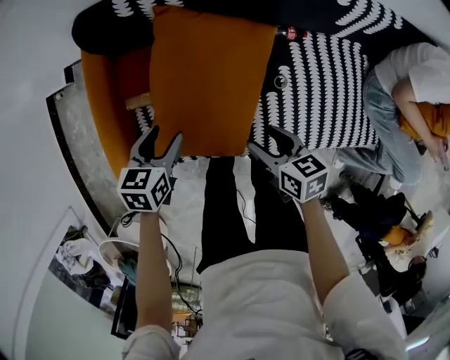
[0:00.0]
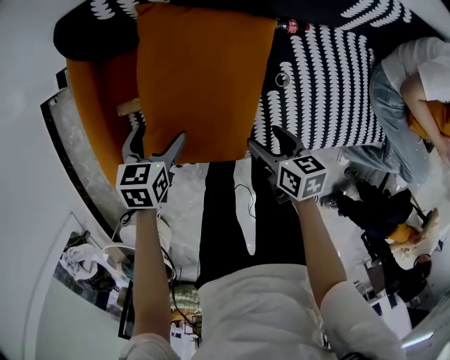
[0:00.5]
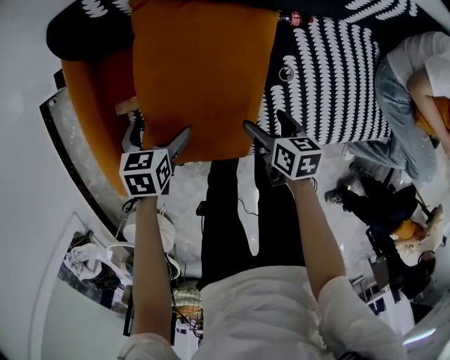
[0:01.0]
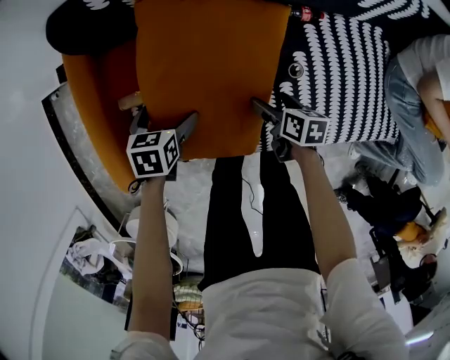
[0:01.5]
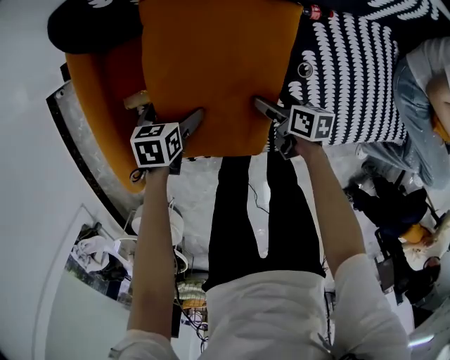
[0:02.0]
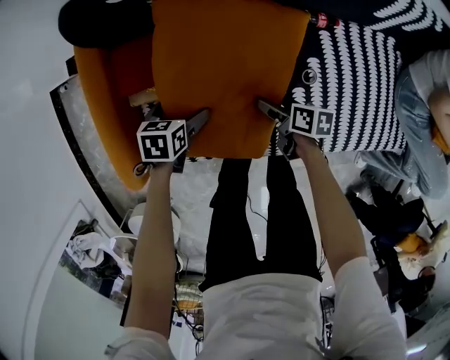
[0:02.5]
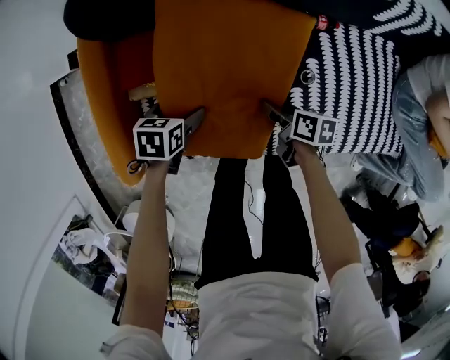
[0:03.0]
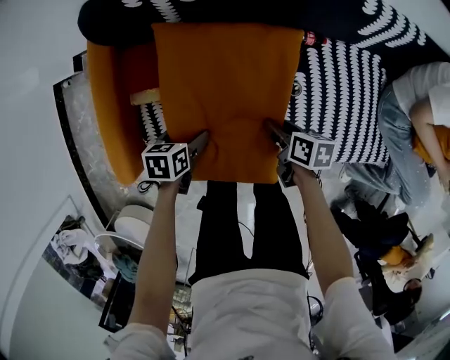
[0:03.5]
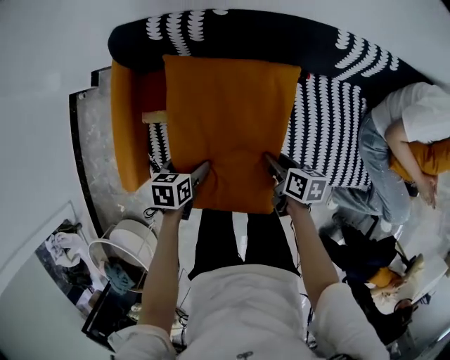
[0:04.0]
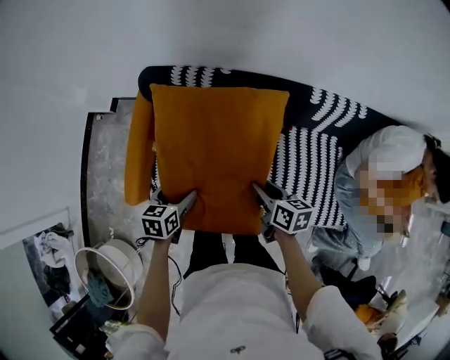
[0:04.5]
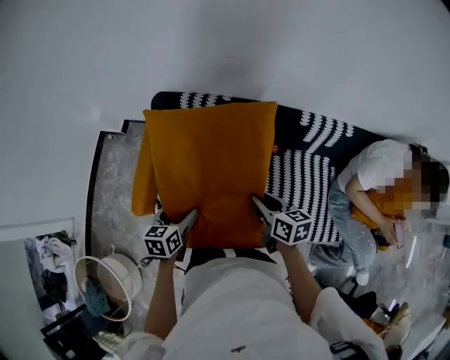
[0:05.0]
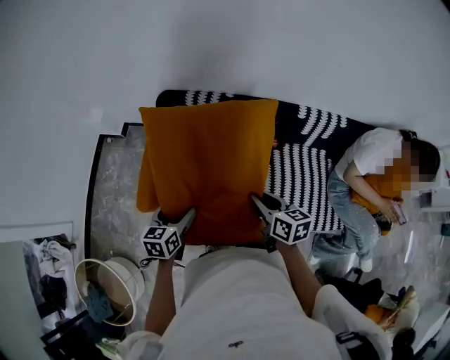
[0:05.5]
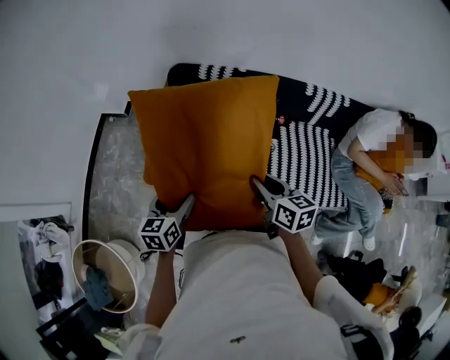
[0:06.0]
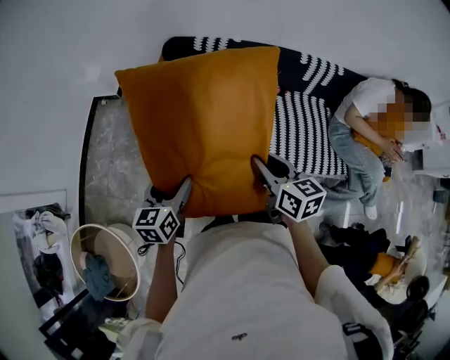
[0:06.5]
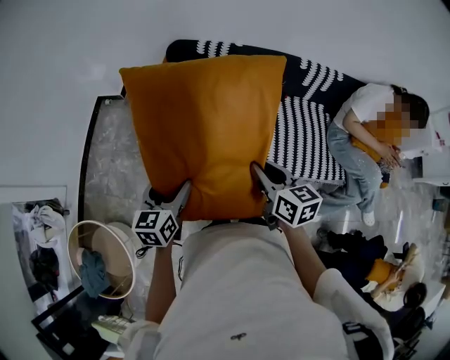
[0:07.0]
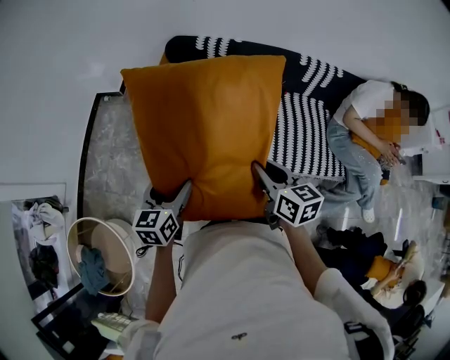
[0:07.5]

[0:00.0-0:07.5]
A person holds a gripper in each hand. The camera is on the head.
0:00.0 to 0:02.0: The grippers both shift downward by approximately 15 cm. The right gripper swivels some 30 degrees, and opens; the left gripper opens.
0:02.0 to 0:04.0: The left gripper heads upward, backward and to the right, covering some 15 cm; the right gripper goes roughly 20 cm upward and to the right, and closes.
0:04.0 to 0:05.5: The two grippers go some 25 cm upward. The right gripper rotates approximately 30 degrees; the left gripper swivels some 30 degrees.
0:05.5 to 0:07.5: Both grippers travel together backward and to the left, roughly 25 cm.

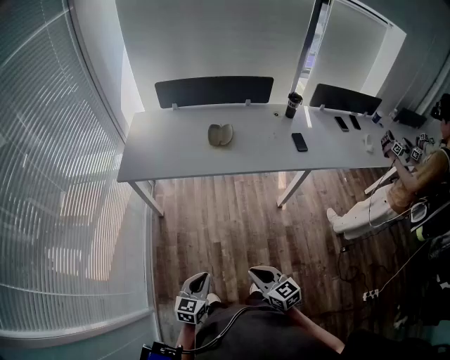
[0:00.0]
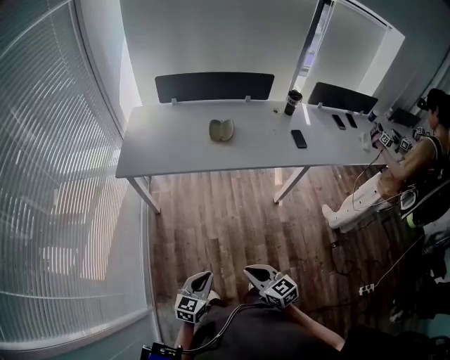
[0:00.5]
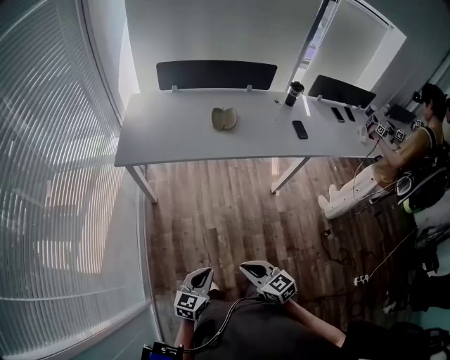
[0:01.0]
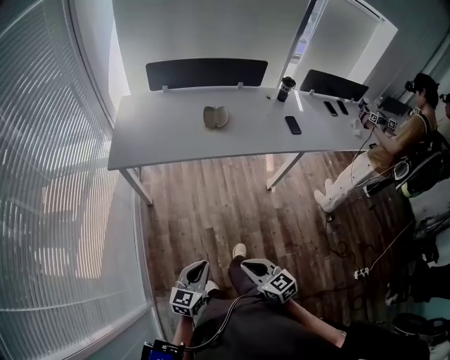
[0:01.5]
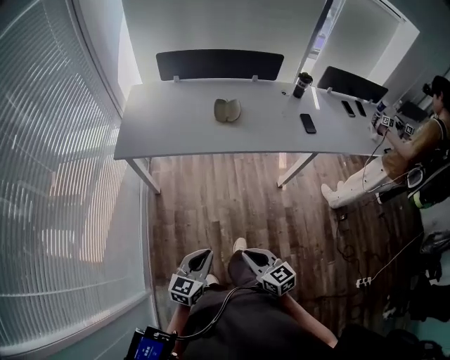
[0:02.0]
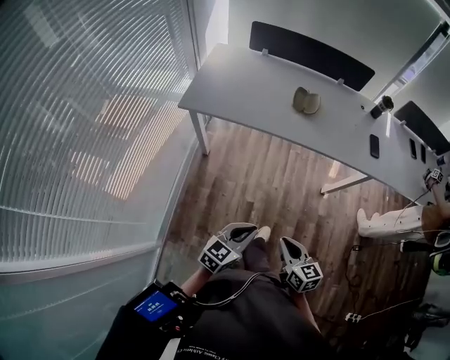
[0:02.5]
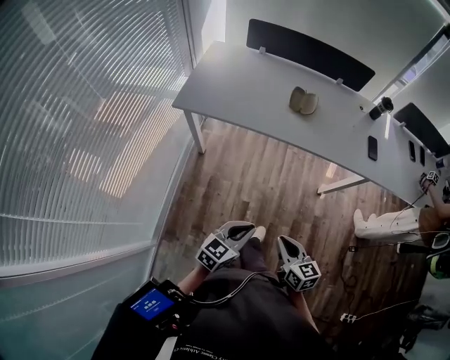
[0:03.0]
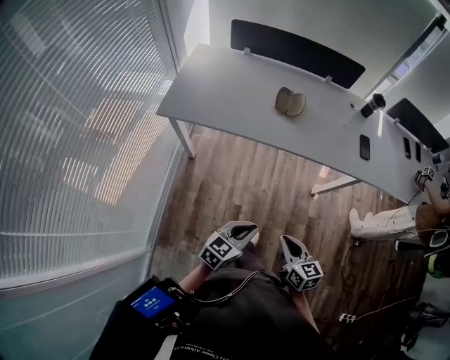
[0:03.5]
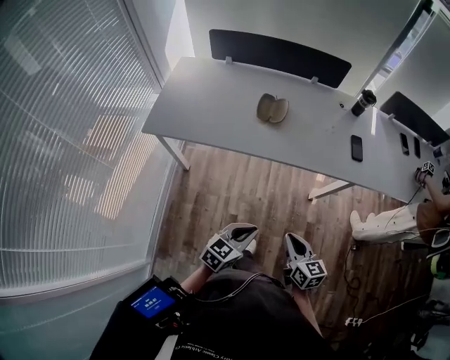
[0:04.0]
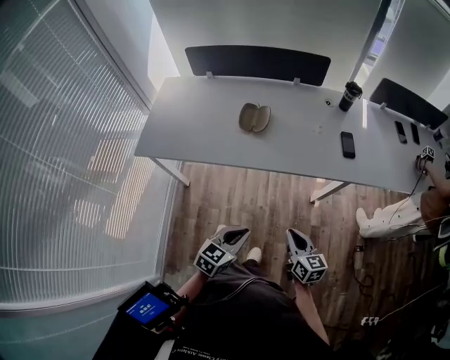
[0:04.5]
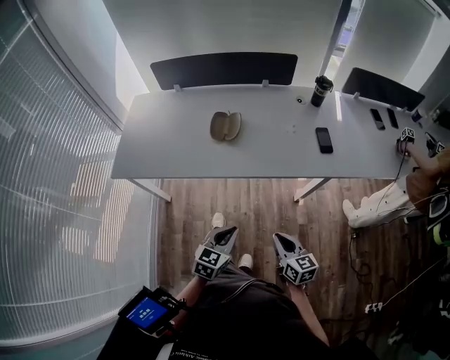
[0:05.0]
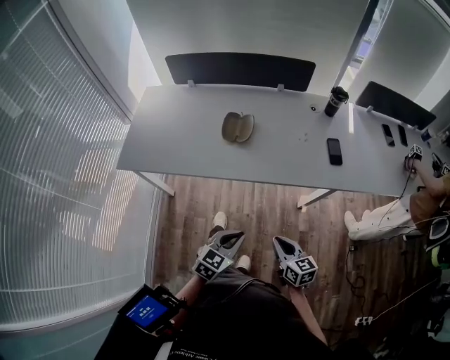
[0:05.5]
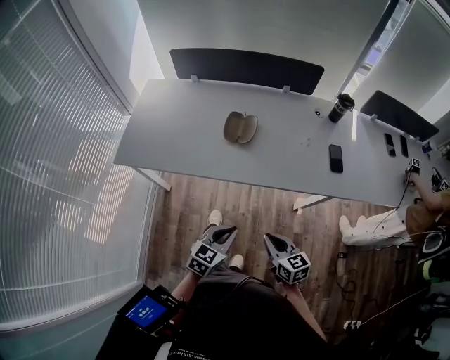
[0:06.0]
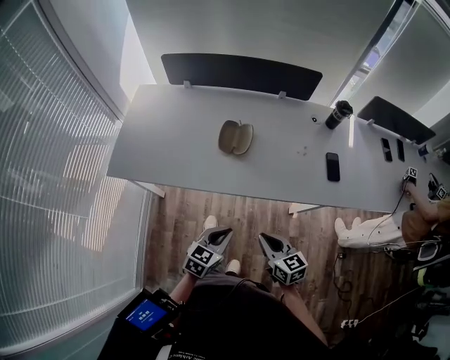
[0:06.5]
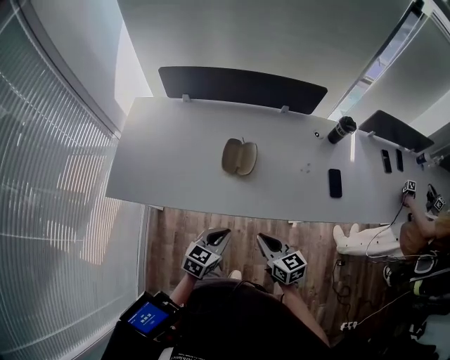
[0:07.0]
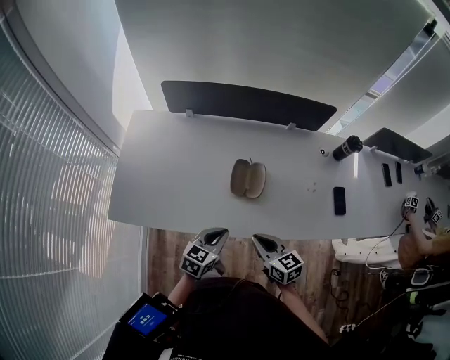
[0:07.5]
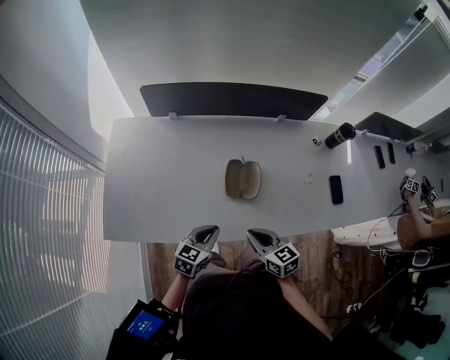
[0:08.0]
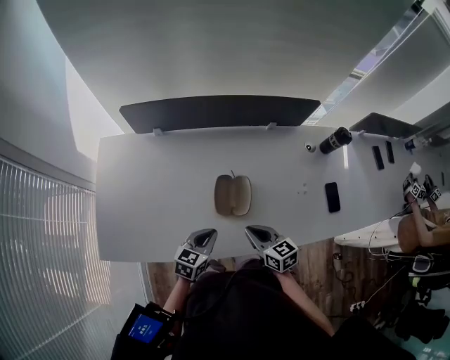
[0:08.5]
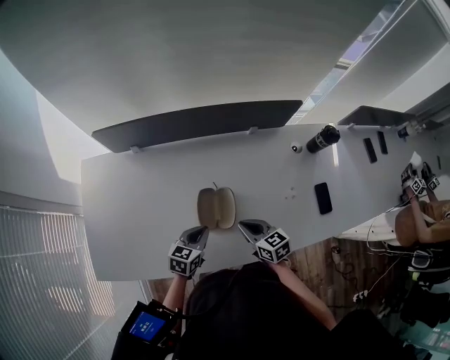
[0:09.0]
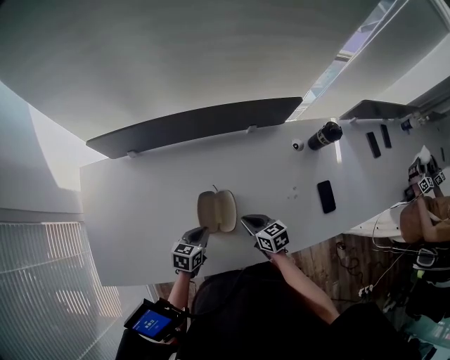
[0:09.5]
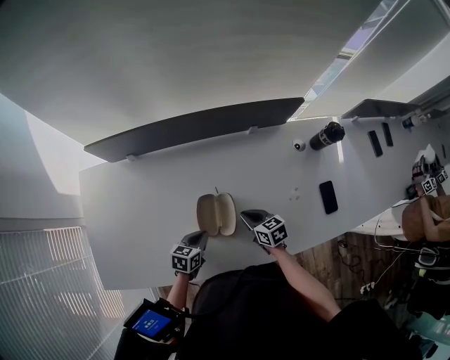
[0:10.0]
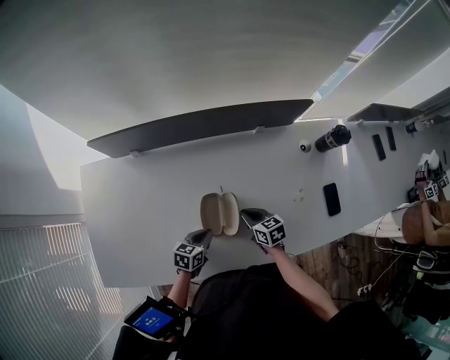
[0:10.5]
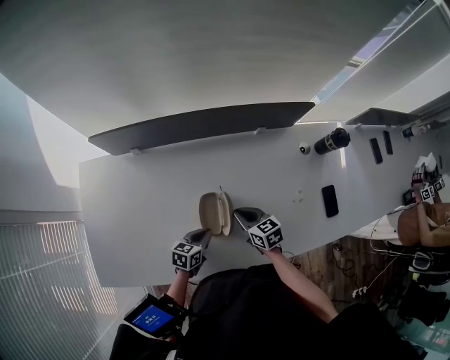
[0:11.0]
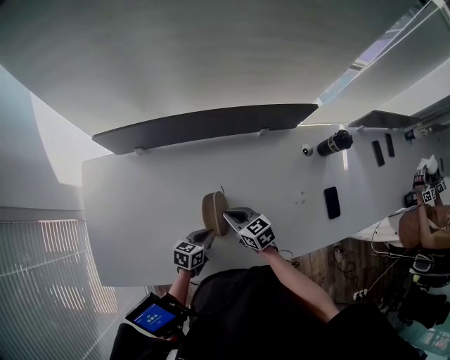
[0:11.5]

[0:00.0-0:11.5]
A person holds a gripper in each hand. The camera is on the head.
0:00.0 to 0:02.0: The right gripper goes roughly 5 cm to the left. The left gripper changes place by some 5 cm.
0:02.0 to 0:04.0: Both grippers move forward and to the right, roughly 20 cm.
0:04.0 to 0:06.0: The two grippers go about 10 cm forward.
0:06.0 to 0:07.5: The two grippers go roughly 25 cm forward and to the left.
0:07.5 to 0:09.5: Both grippers move forward and downward, some 25 cm.
0:09.5 to 0:11.5: The right gripper travels to the left by some 10 cm.

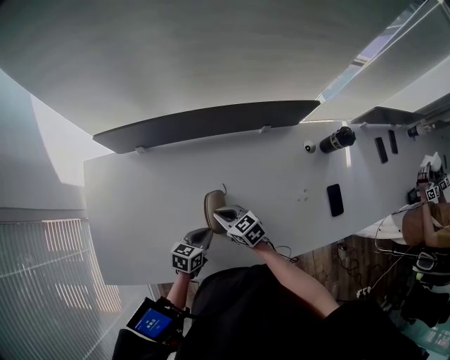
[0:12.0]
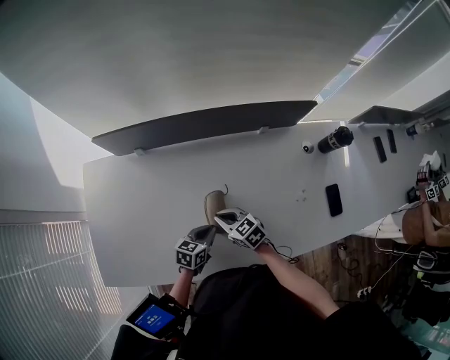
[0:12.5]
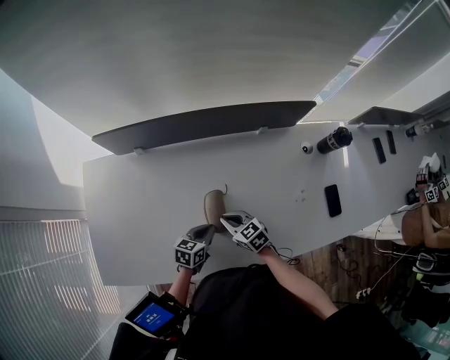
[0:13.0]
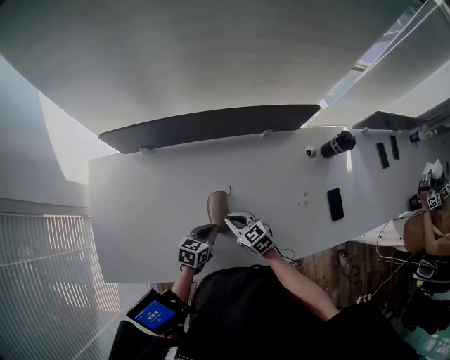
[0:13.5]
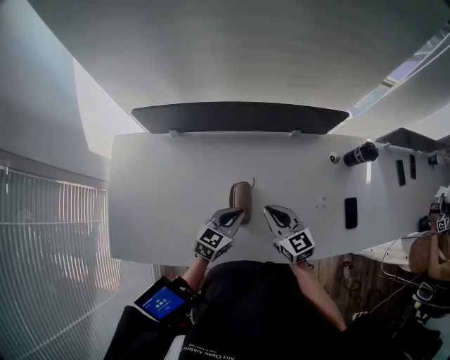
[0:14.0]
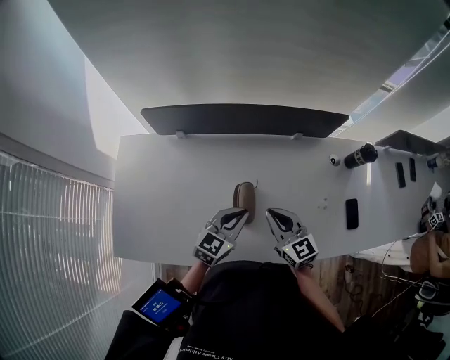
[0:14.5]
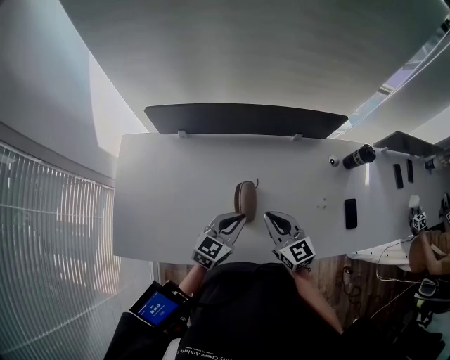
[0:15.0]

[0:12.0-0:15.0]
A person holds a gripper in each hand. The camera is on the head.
0:12.0 to 0:13.5: There are only small adjustments of the grippers.
0:13.5 to 0:15.0: Both grippers move upward, approximately 15 cm. The left gripper swivels approximately 30 degrees. The right gripper changes its angle by approximately 20 degrees.

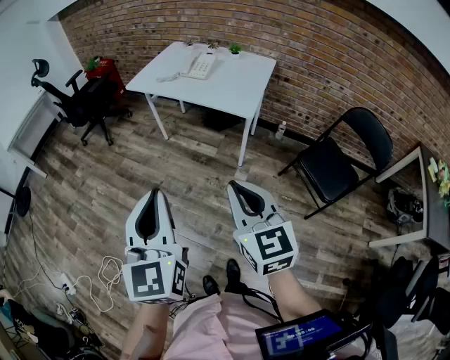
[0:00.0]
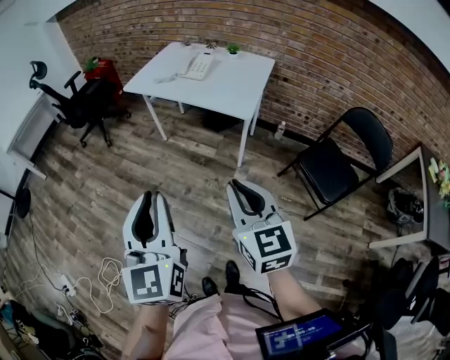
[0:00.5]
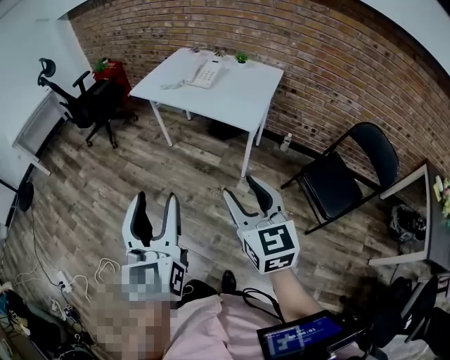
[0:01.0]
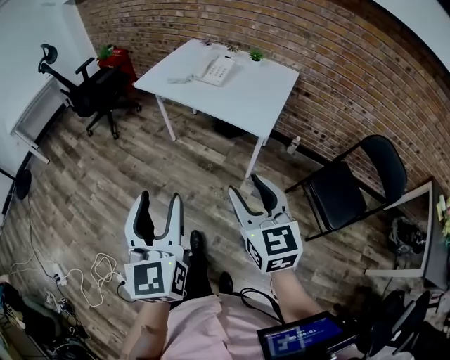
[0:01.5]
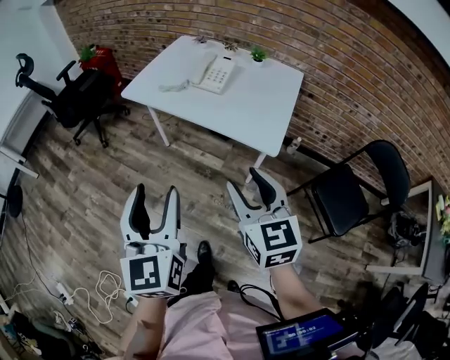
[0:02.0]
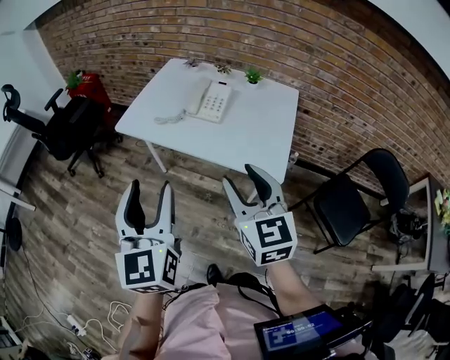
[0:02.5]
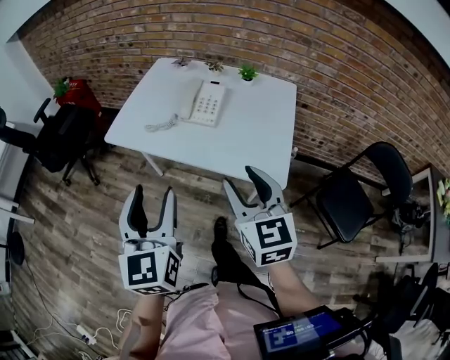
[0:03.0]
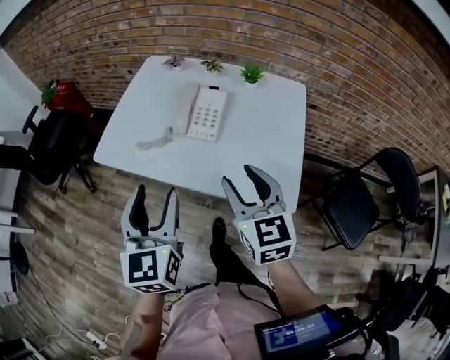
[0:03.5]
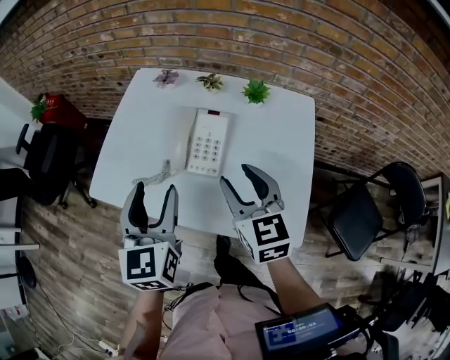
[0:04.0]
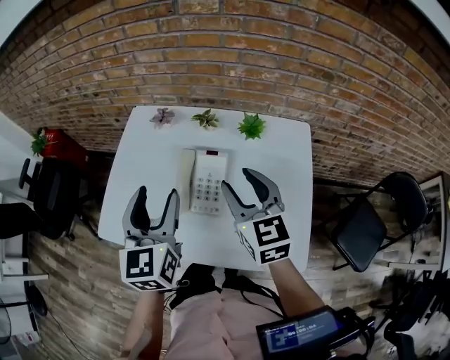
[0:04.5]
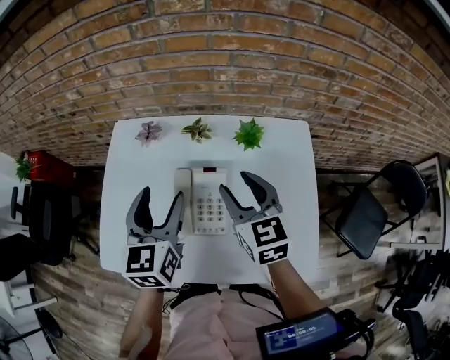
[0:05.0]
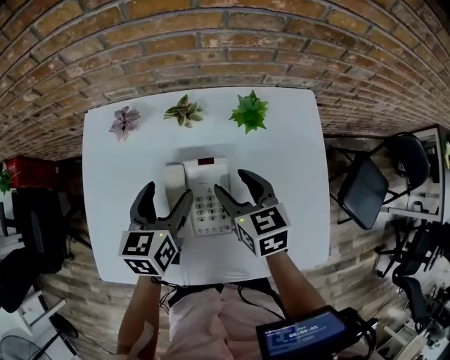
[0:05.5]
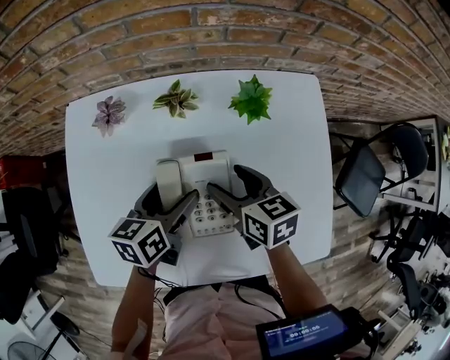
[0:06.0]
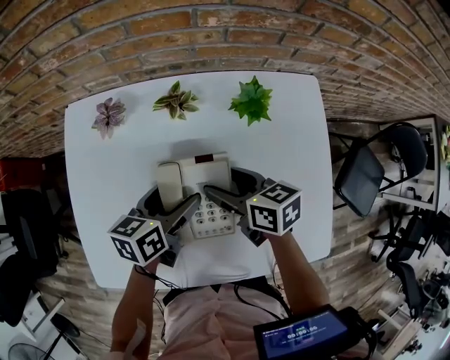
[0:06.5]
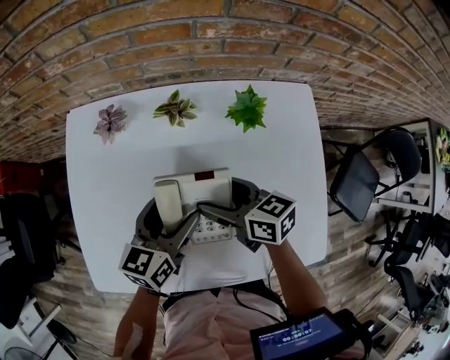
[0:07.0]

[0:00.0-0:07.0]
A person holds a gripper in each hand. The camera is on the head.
0:00.0 to 0:02.0: Both grippers travel together forward, approximately 25 cm. The left gripper opens; the right gripper opens up.
0:02.0 to 0:03.5: The grippers both shift forward by roughly 30 cm.
0:03.5 to 0:05.0: The grippers both shift forward by some 30 cm.
0:05.0 to 0:07.0: The two grippers go roughly 15 cm downward. The left gripper changes its angle by roughly 30 degrees. The right gripper turns by roughly 40 degrees, and opens.
